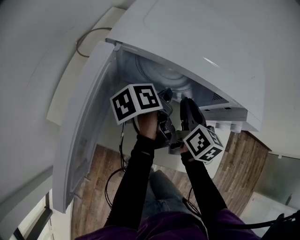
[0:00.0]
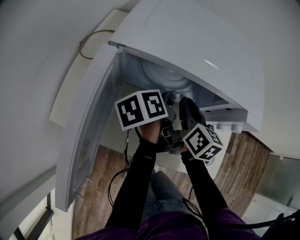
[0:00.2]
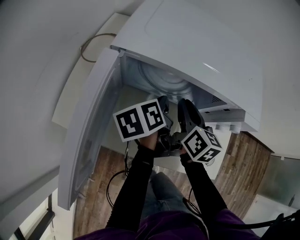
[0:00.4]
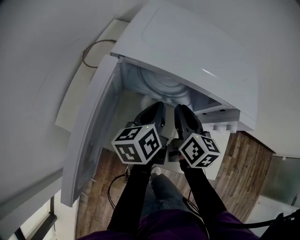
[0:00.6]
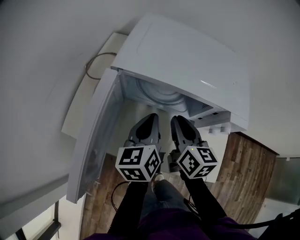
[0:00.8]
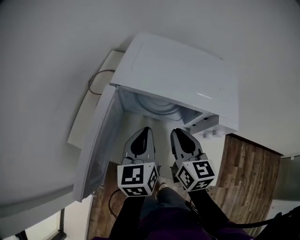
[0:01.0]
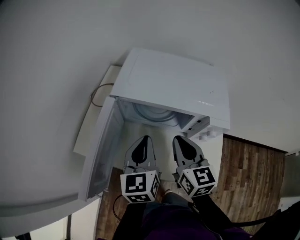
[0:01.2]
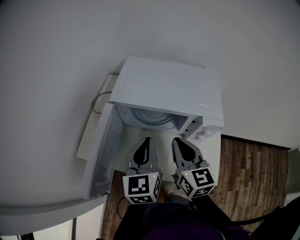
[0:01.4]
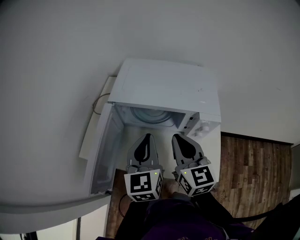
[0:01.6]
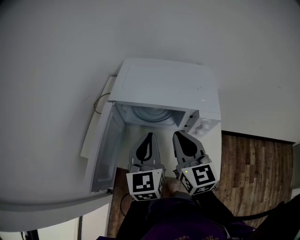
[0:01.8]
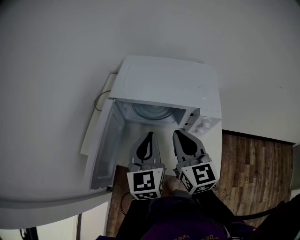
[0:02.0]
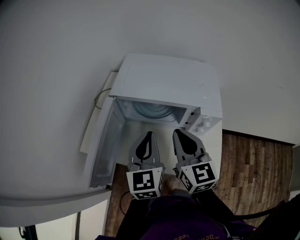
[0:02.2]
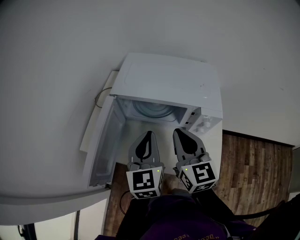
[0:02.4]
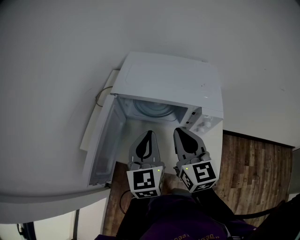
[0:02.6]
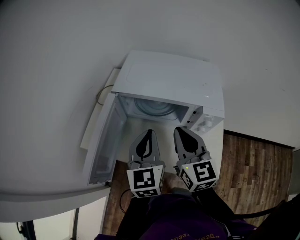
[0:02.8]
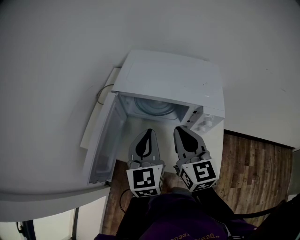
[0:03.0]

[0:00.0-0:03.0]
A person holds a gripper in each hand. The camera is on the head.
0:00.0 to 0:01.6: The grippers both shift upward and backward by approximately 20 cm. The left gripper rotates around the line of its fingers by about 70 degrees, clockwise from behind. The right gripper changes its angle by approximately 30 degrees.
0:01.6 to 0:03.0: The grippers move only a little.

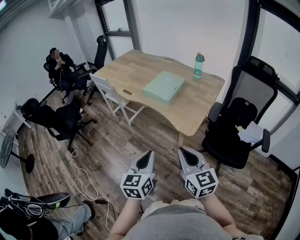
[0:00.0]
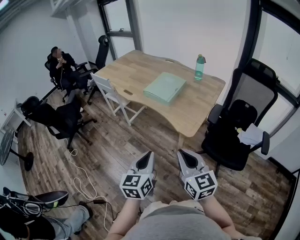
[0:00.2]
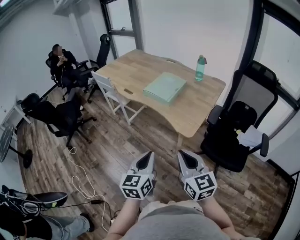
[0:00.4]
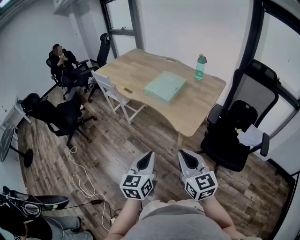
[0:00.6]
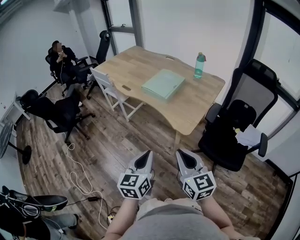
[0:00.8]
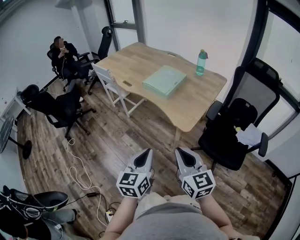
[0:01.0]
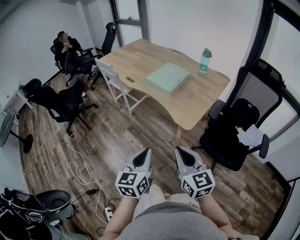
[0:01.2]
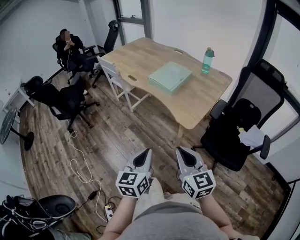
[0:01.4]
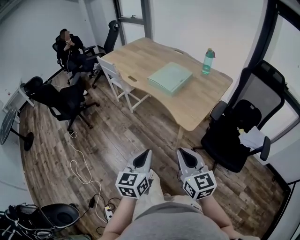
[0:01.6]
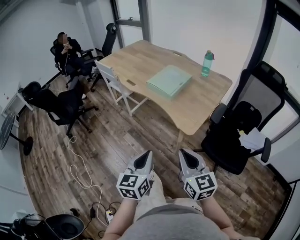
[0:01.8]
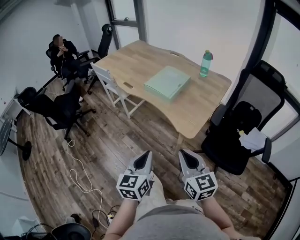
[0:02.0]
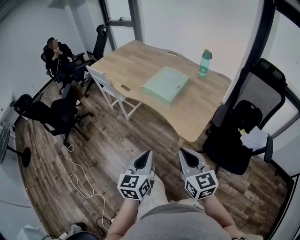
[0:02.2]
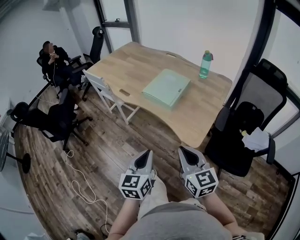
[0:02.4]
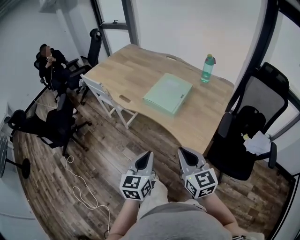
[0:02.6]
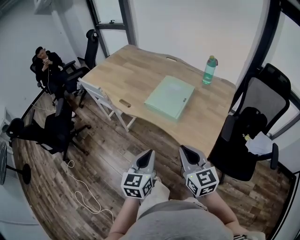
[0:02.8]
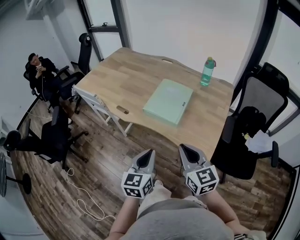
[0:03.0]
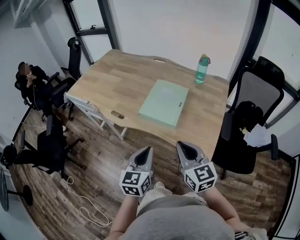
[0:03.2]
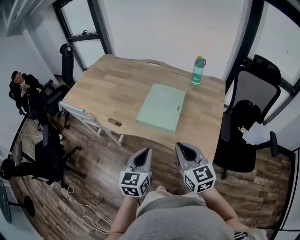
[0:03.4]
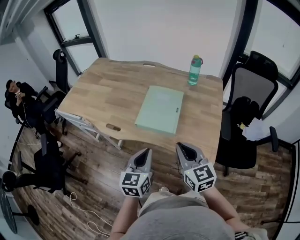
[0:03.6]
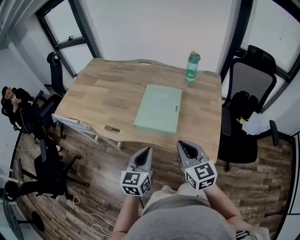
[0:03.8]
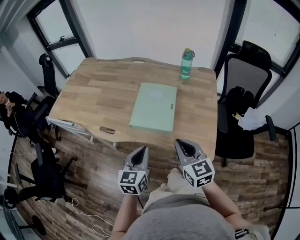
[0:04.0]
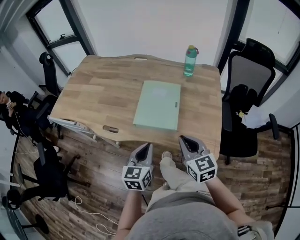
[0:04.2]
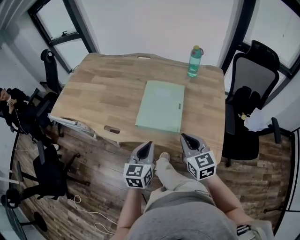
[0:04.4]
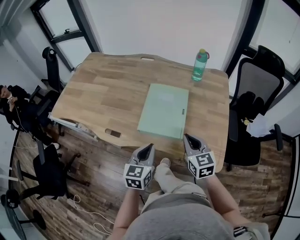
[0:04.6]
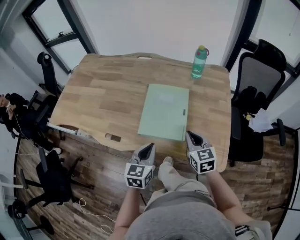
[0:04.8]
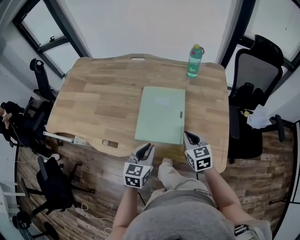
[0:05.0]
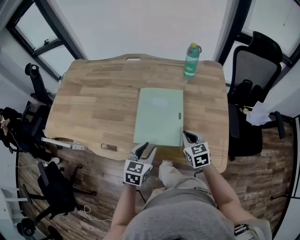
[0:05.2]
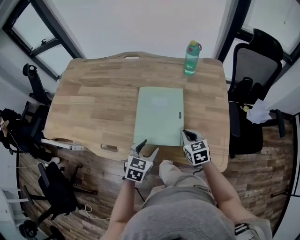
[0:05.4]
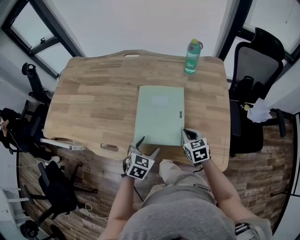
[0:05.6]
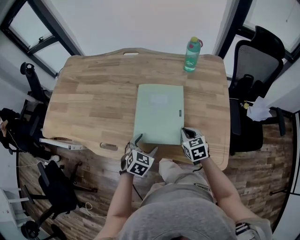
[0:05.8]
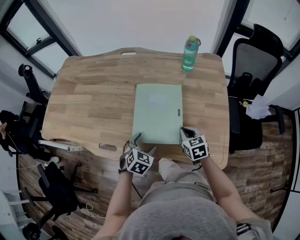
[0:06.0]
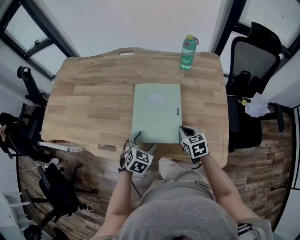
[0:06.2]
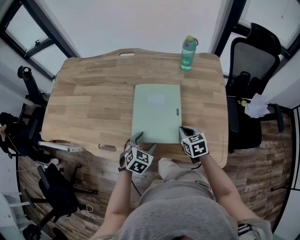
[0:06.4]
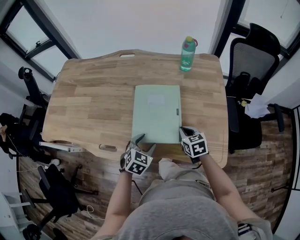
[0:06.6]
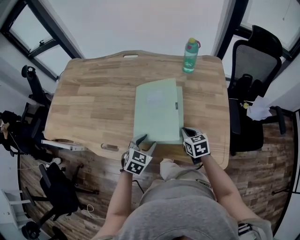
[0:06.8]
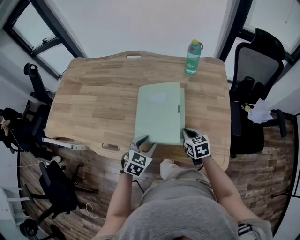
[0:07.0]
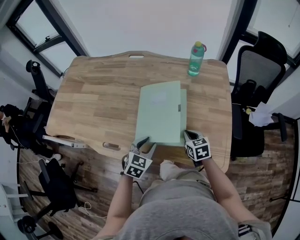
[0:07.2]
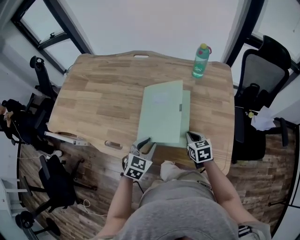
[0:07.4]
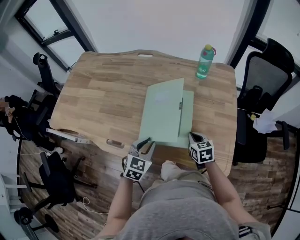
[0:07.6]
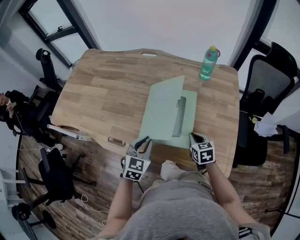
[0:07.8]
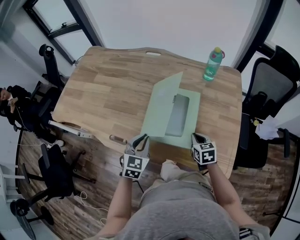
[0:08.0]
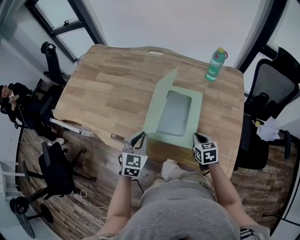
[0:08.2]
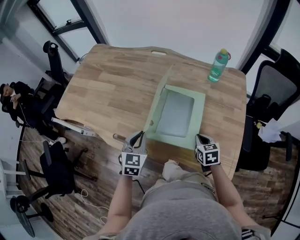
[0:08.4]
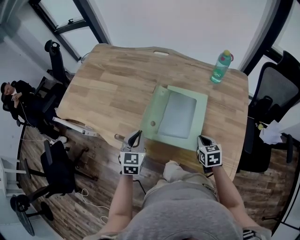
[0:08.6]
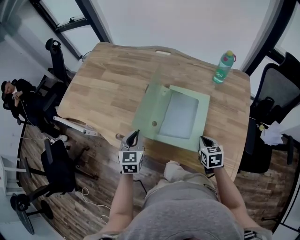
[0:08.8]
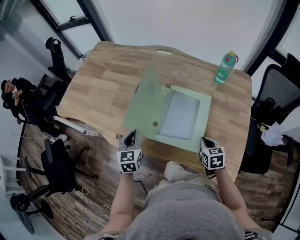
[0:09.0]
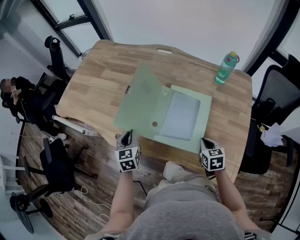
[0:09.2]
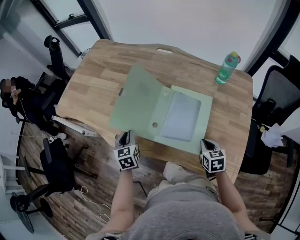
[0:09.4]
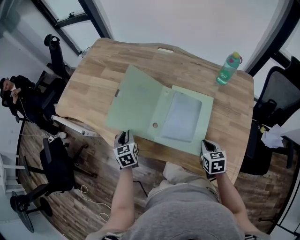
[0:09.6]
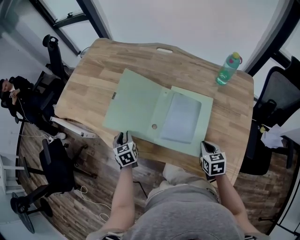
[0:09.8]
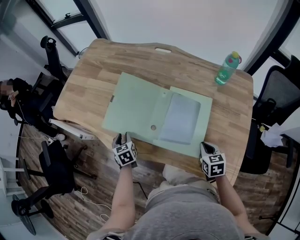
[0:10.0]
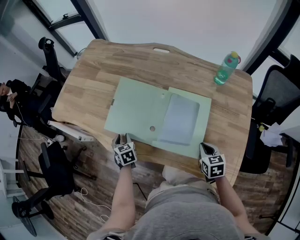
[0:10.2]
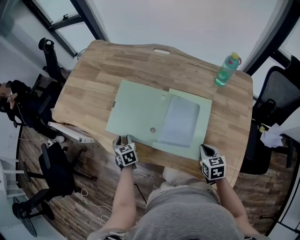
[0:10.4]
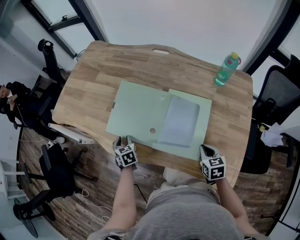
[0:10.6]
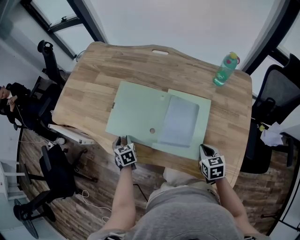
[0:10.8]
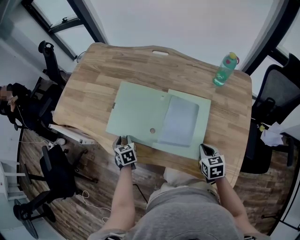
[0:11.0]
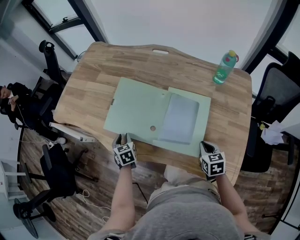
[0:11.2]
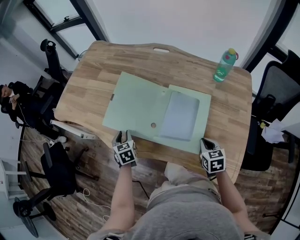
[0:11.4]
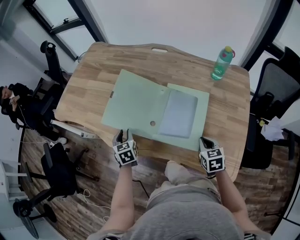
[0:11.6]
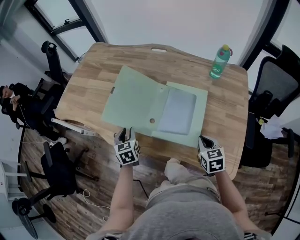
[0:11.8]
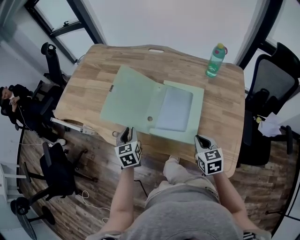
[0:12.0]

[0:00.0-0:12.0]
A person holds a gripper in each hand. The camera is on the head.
0:00.0 to 0:01.6: The grippers make only small movements.
0:01.6 to 0:03.0: Both grippers move forward, approximately 30 cm.
0:03.0 to 0:04.4: The right gripper heads forward and downward, covering some 15 cm, while the left gripper heads forward, covering approximately 15 cm.
0:04.4 to 0:06.0: Both grippers travel together downward and forward, approximately 20 cm. The right gripper rotates approximately 20 degrees. Meanwhile the left gripper tips its fingers downward by about 30 degrees, and opens its fingers.
0:06.0 to 0:07.6: The left gripper moves upward, roughly 5 cm, and closes up.
0:07.6 to 0:09.0: The left gripper heads to the left, covering some 15 cm, and rotates roughly 40 degrees.
0:09.0 to 0:10.4: The left gripper heads downward and to the left, covering roughly 15 cm, and swivels about 30 degrees.
0:10.4 to 0:12.0: The right gripper travels upward by about 5 cm. Meanwhile the left gripper shifts roughly 15 cm upward, to the right and backward, and swivels approximately 20 degrees.

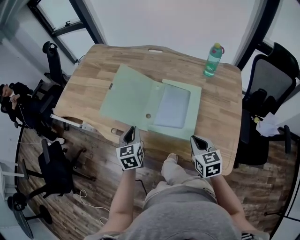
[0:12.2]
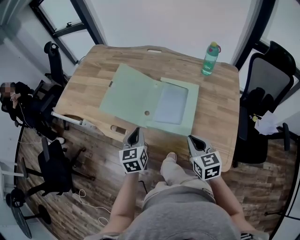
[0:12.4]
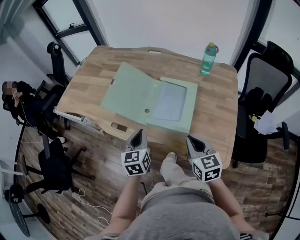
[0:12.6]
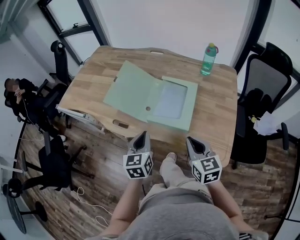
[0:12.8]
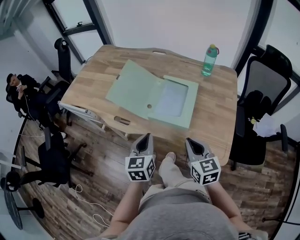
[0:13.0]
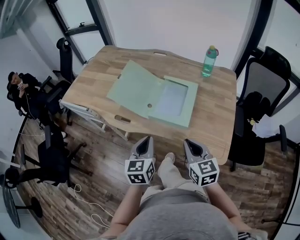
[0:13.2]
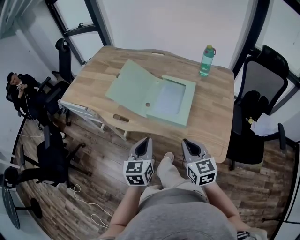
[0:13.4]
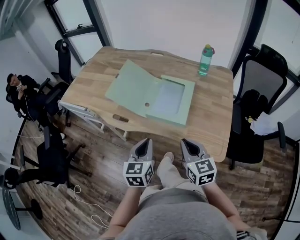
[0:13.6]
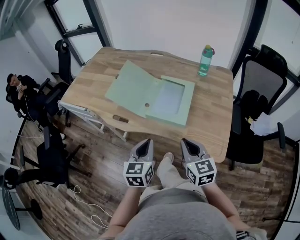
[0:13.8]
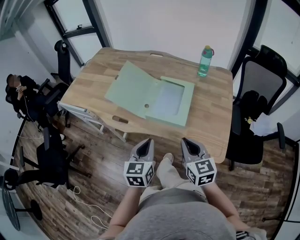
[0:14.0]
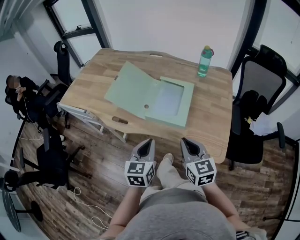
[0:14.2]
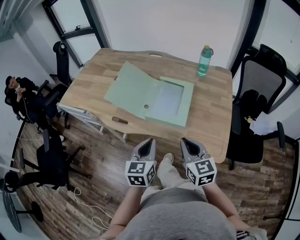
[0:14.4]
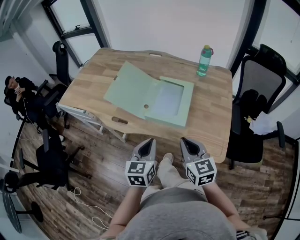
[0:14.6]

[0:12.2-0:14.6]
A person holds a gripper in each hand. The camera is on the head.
0:12.2 to 0:13.4: The left gripper heads backward, covering approximately 20 cm, while the right gripper is displaced backward and upward by roughly 15 cm.
0:13.4 to 0:14.6: The grippers stay close to where they were, moving slightly.

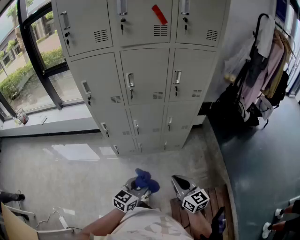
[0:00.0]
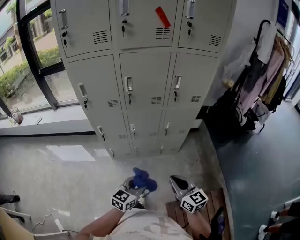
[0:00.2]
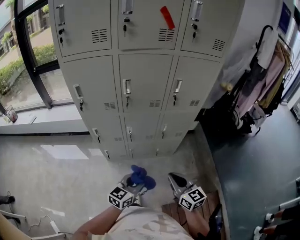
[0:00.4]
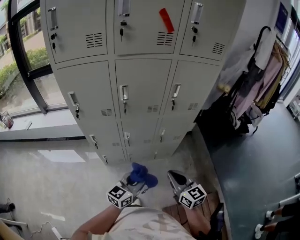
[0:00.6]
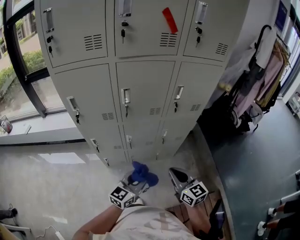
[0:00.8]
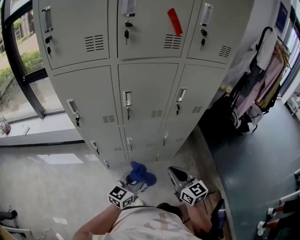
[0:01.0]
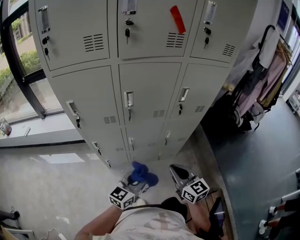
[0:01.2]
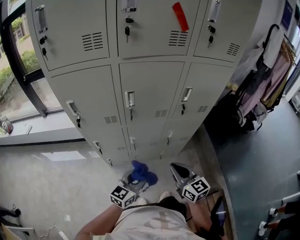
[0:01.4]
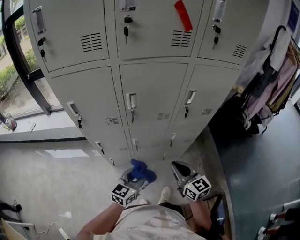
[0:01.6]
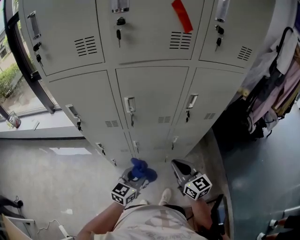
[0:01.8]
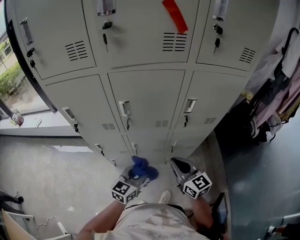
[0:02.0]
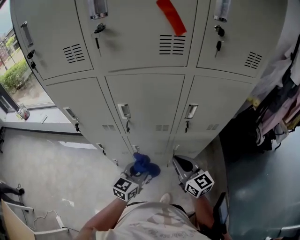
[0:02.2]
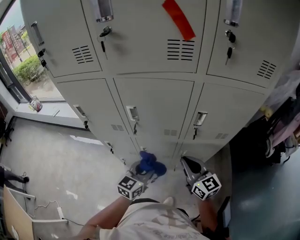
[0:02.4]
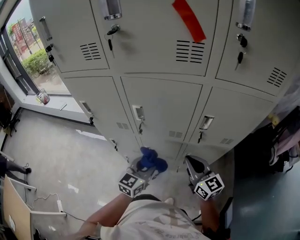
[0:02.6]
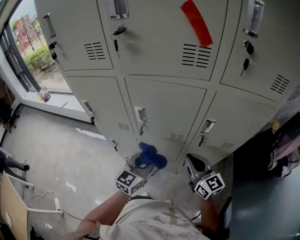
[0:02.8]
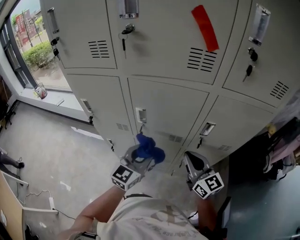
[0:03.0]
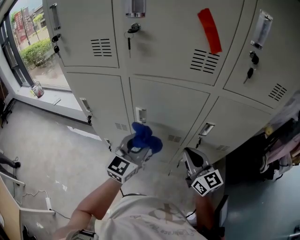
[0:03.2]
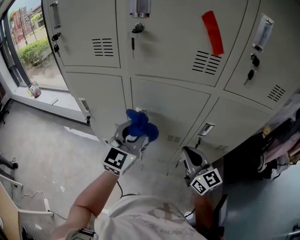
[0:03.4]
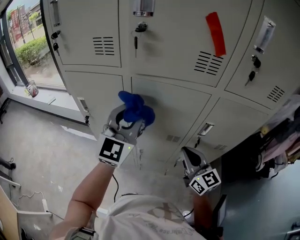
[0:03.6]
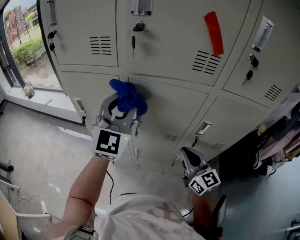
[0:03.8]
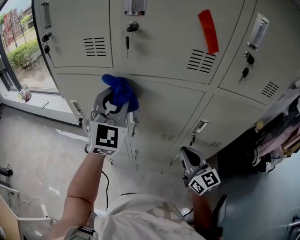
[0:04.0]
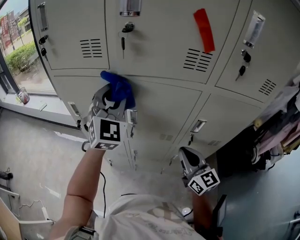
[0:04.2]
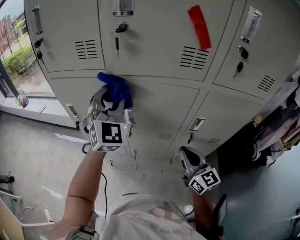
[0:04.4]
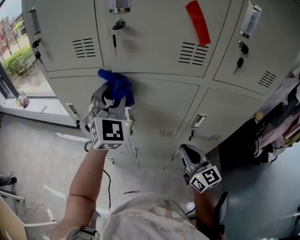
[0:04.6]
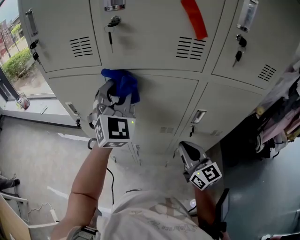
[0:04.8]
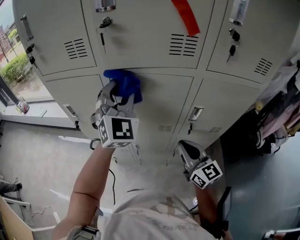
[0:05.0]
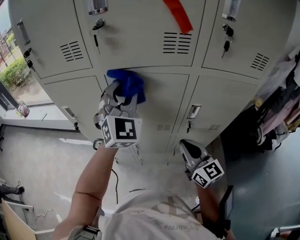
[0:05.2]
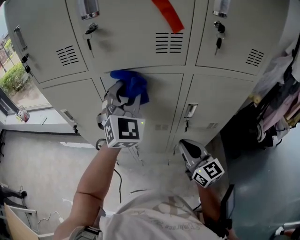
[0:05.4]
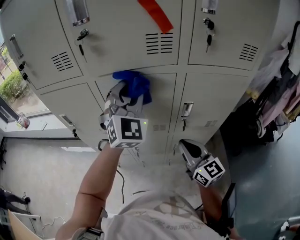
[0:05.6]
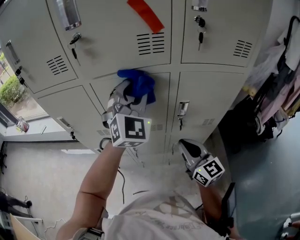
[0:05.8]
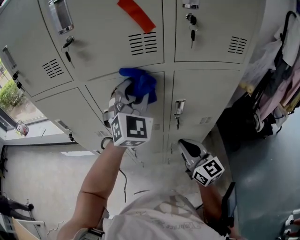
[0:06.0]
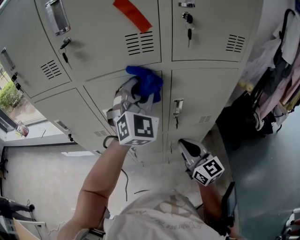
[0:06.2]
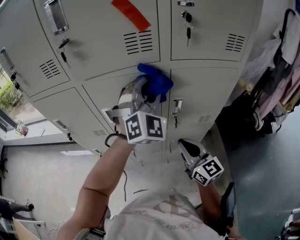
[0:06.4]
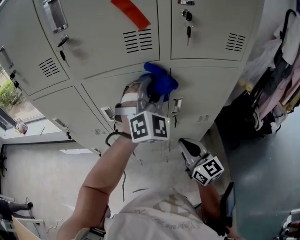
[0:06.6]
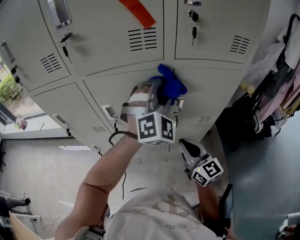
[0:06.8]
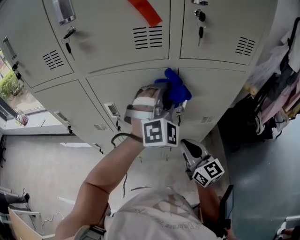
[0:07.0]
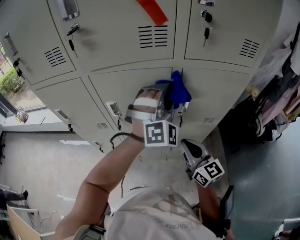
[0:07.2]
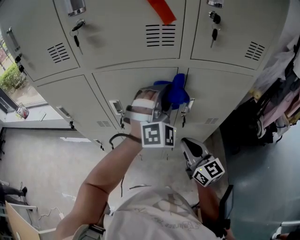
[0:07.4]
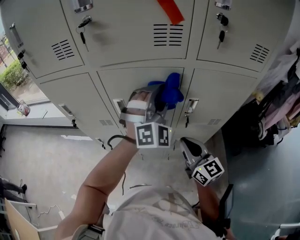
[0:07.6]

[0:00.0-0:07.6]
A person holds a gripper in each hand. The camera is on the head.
0:00.0 to 0:01.6: The right gripper heads forward, covering roughly 25 cm; the left gripper is displaced forward and to the left by roughly 25 cm.
0:01.6 to 0:03.0: The left gripper is displaced forward and upward by about 20 cm, and swivels some 20 degrees. Meanwhile the right gripper is displaced forward, upward and to the right by about 20 cm.
0:03.0 to 0:04.6: The left gripper goes approximately 25 cm upward and forward, and rotates some 50 degrees.
0:04.6 to 0:06.0: The right gripper shifts by approximately 5 cm. Meanwhile the left gripper moves to the right, some 15 cm.
0:06.0 to 0:07.6: The left gripper travels downward by approximately 5 cm, and travels to the right and back again, some 10 cm each way.
